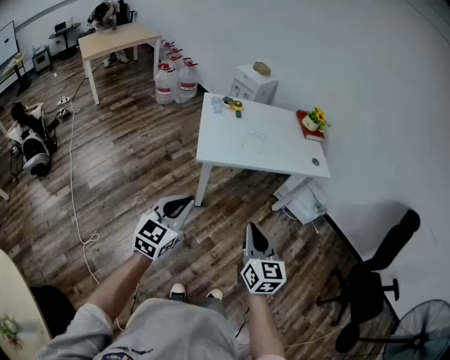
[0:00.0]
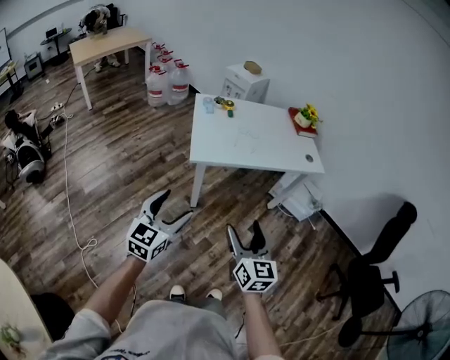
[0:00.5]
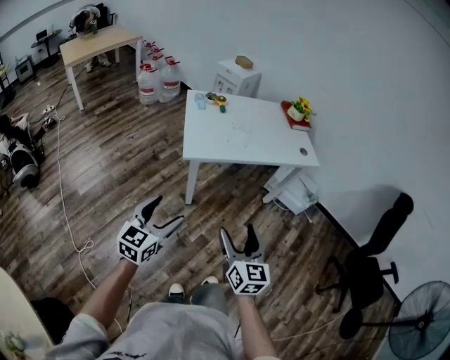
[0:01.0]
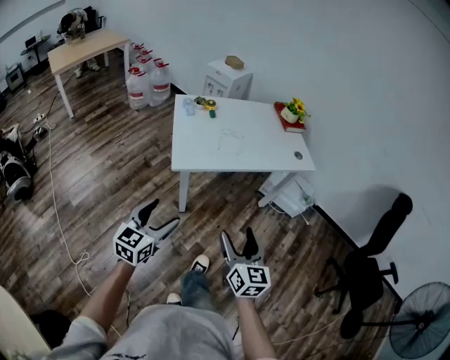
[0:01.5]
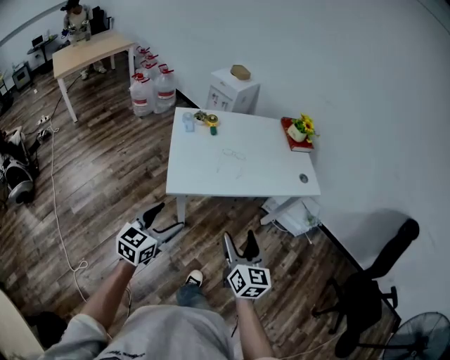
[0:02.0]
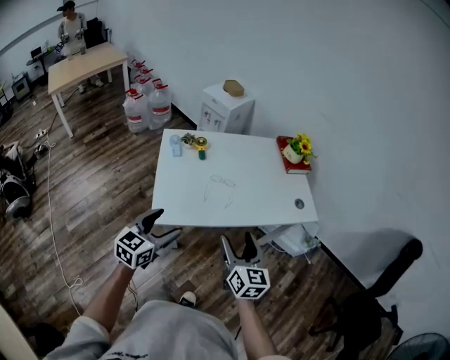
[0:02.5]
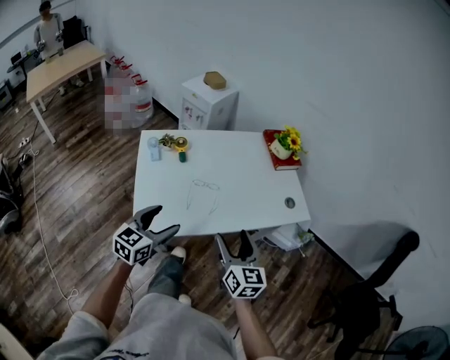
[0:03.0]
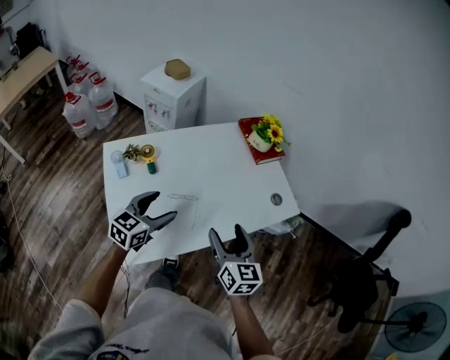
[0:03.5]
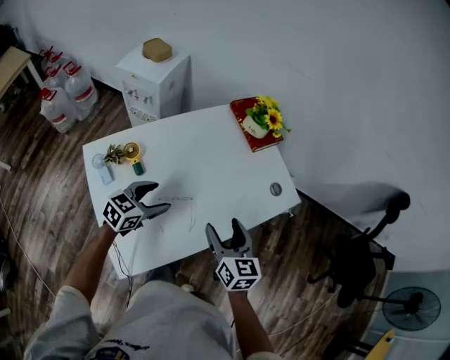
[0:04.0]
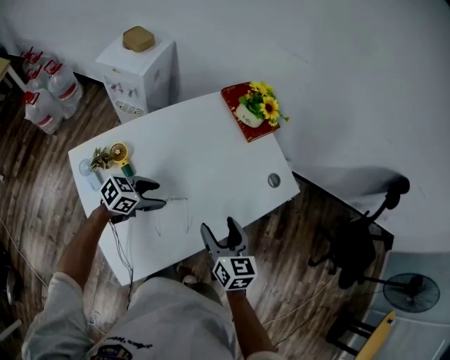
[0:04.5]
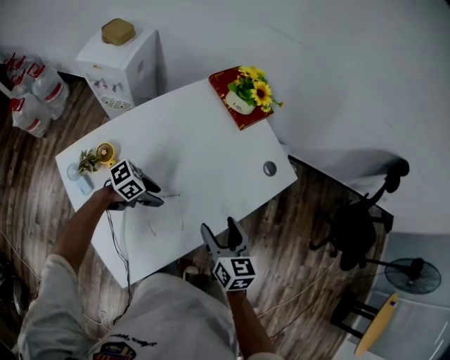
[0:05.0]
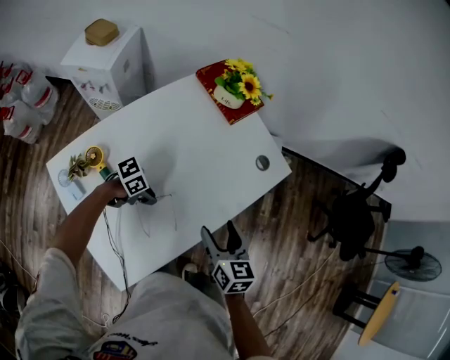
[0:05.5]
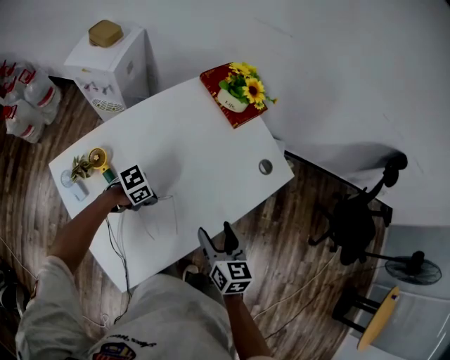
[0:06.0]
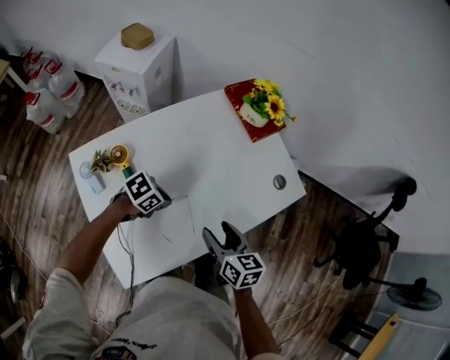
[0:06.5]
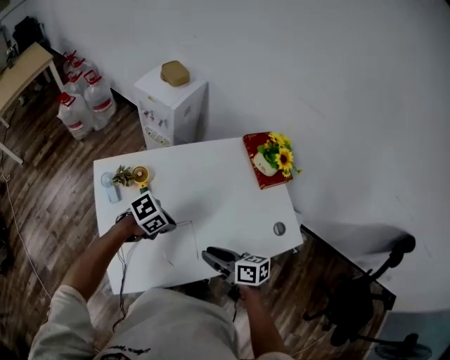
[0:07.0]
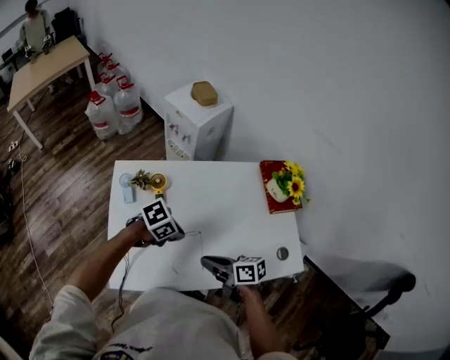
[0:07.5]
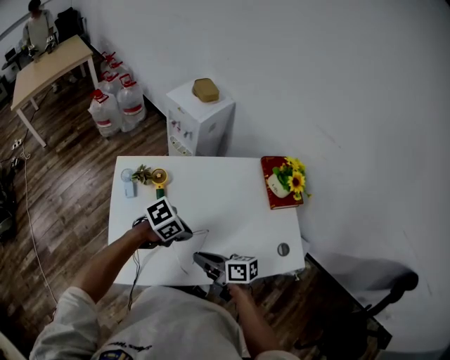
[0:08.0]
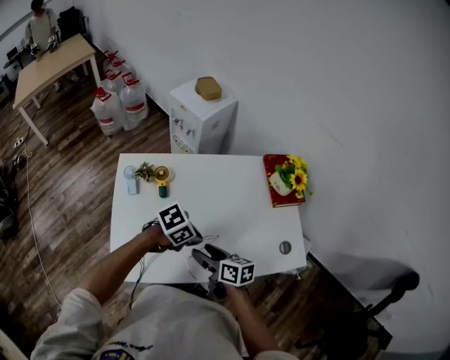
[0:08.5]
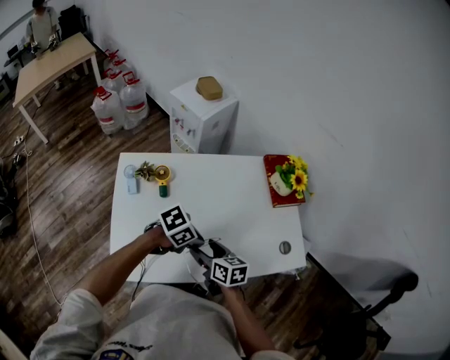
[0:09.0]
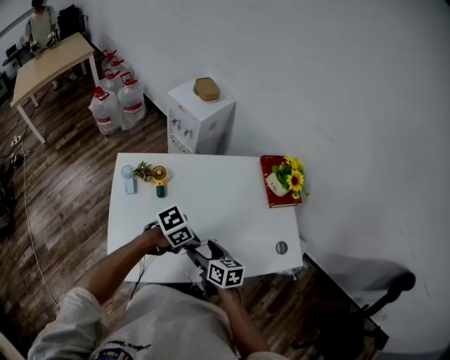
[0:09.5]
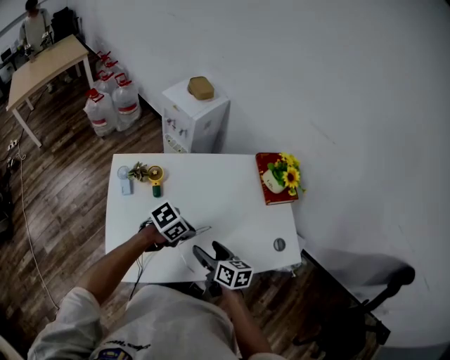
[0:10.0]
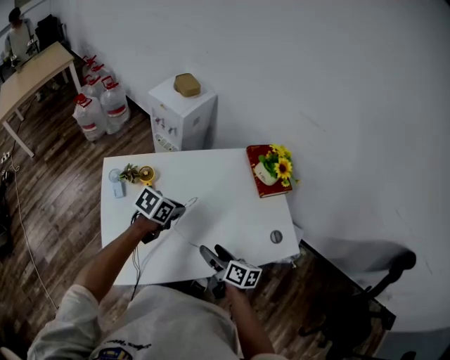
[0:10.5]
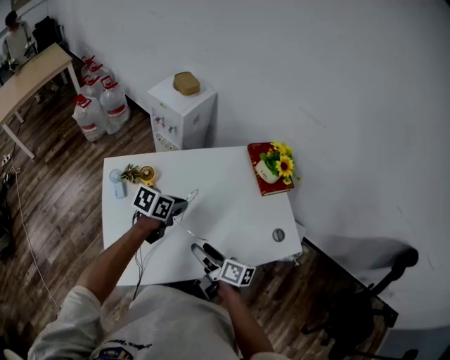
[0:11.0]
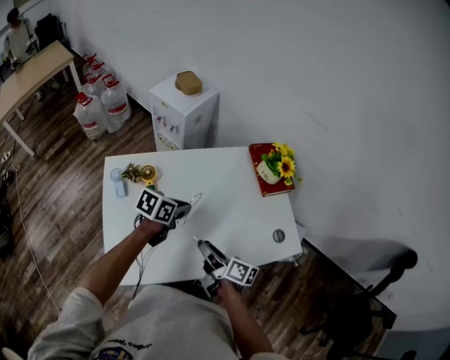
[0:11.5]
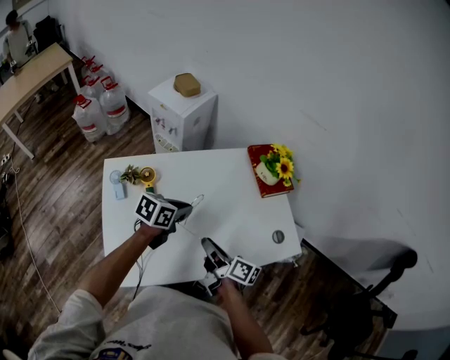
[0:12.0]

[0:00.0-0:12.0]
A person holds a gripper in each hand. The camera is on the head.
0:00.0 to 0:02.0: The grippers both shift forward by roughly 20 cm. The right gripper opens up, while the left gripper opens.
0:02.0 to 0:04.0: Both grippers are carried some 50 cm. The left gripper changes its angle by some 40 degrees.
0:04.0 to 0:06.0: The right gripper is displaced downward by roughly 5 cm. Meanwhile the left gripper shifts approximately 15 cm downward, turns by about 60 degrees, and closes its fingers.
0:06.0 to 0:08.0: The right gripper moves about 10 cm, changes its angle by roughly 70 degrees, and closes up, while the left gripper travels upward by about 20 cm, and turns by roughly 30 degrees.
0:08.0 to 0:10.0: The right gripper changes place by some 5 cm, turns by about 30 degrees, and opens its fingers.
0:10.0 to 0:12.0: The left gripper ends up about 10 cm from where it was, and swivels some 30 degrees. Meanwhile the right gripper travels upward by about 5 cm, changes its angle by approximately 30 degrees, and closes its fingers.

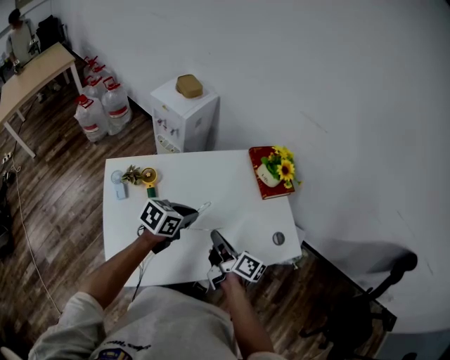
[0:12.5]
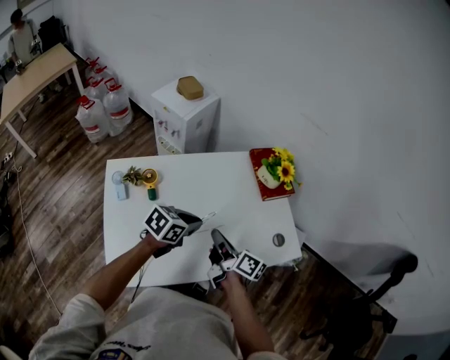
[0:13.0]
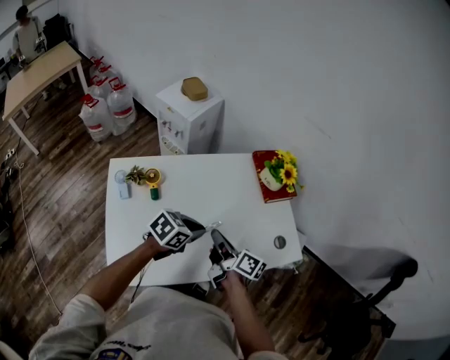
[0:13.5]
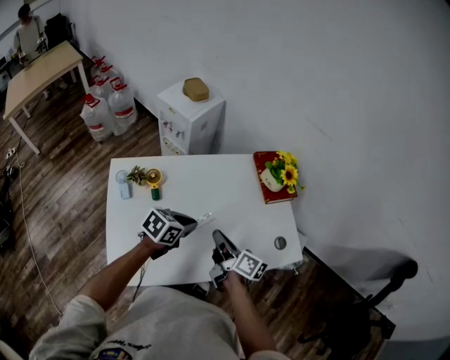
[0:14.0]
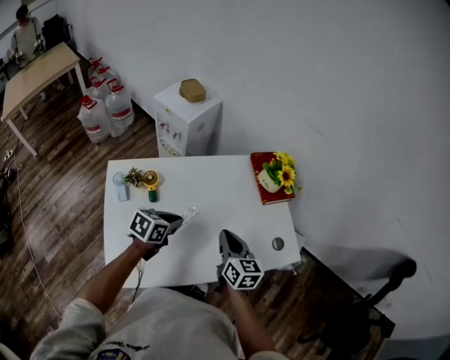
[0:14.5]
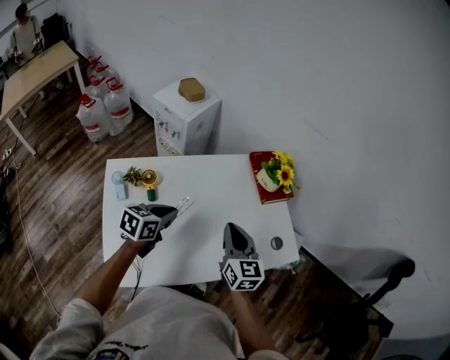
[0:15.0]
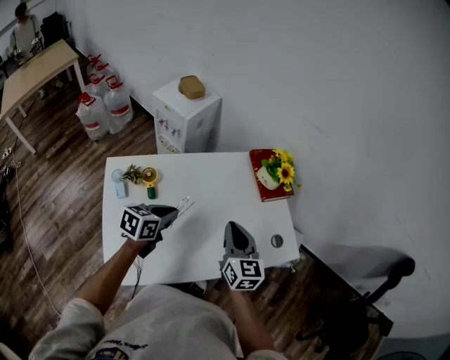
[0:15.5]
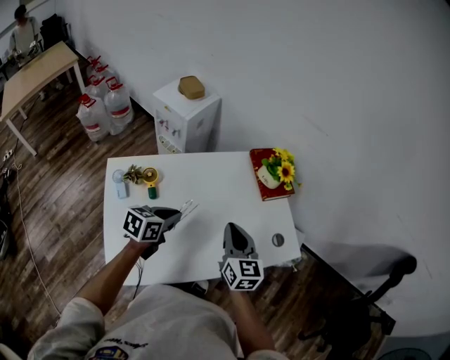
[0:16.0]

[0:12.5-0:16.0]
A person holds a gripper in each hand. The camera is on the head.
0:12.5 to 0:14.5: The right gripper turns by roughly 50 degrees. The left gripper changes place by roughly 5 cm.
0:14.5 to 0:16.0: There are only small adjustments of the grippers.

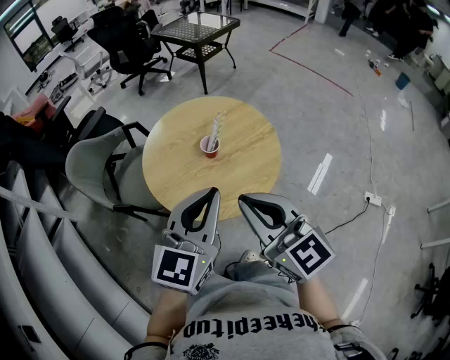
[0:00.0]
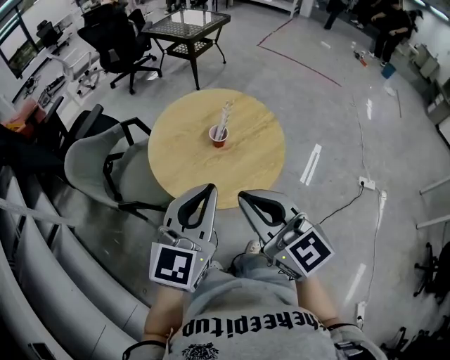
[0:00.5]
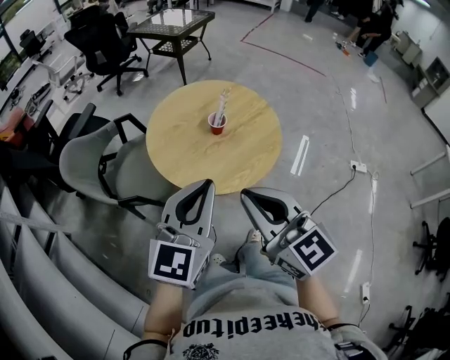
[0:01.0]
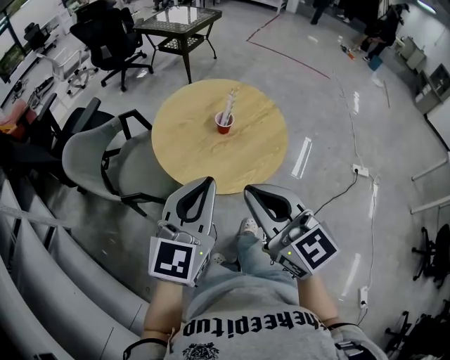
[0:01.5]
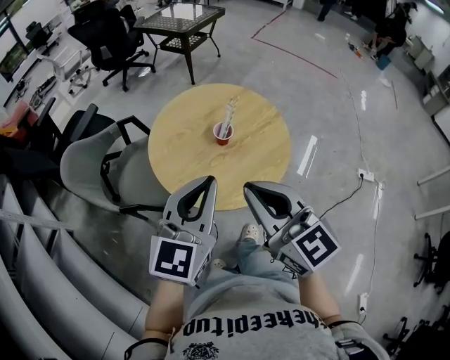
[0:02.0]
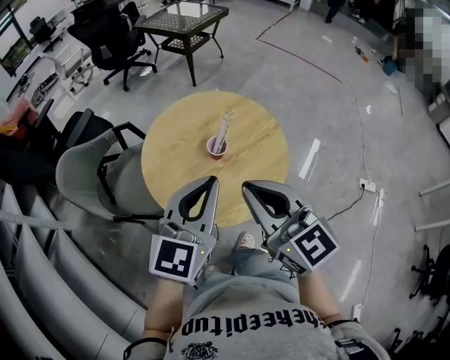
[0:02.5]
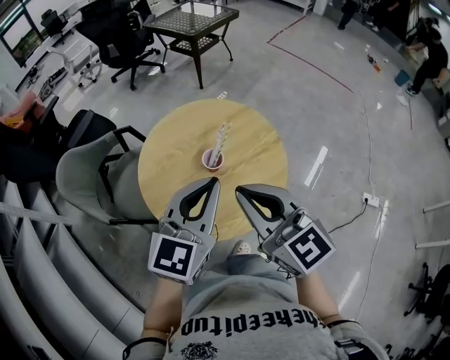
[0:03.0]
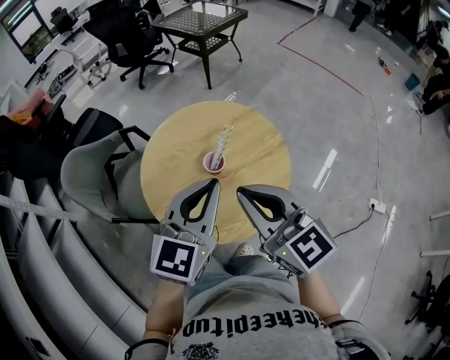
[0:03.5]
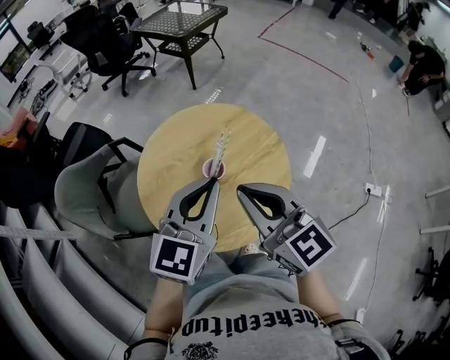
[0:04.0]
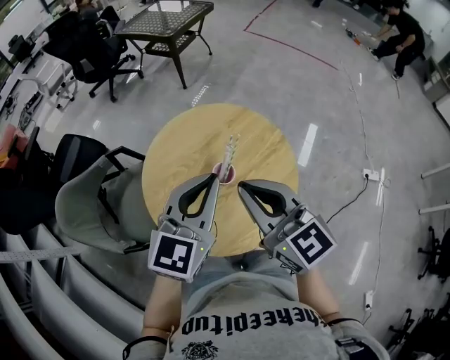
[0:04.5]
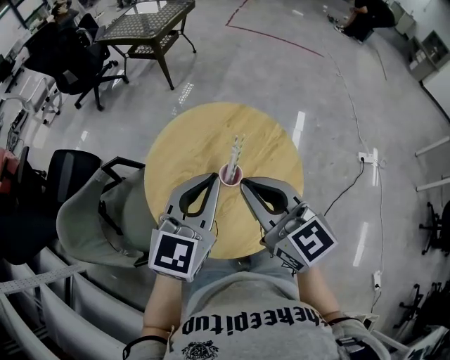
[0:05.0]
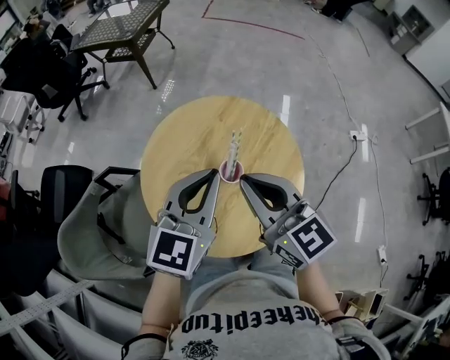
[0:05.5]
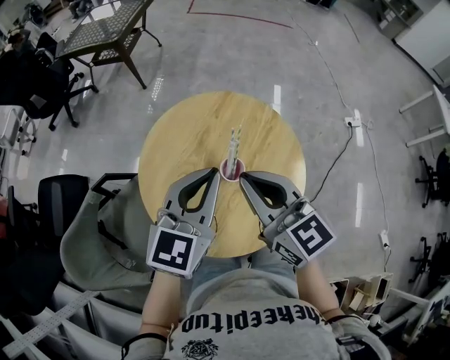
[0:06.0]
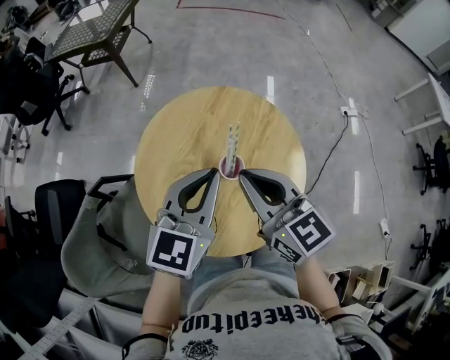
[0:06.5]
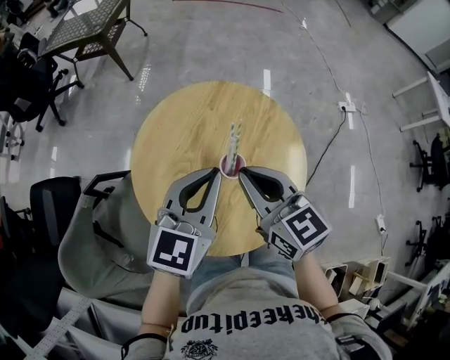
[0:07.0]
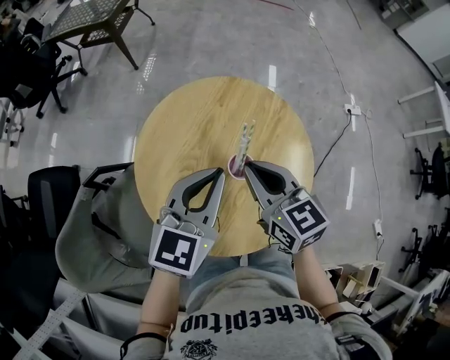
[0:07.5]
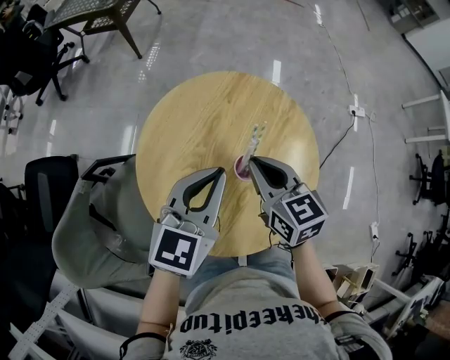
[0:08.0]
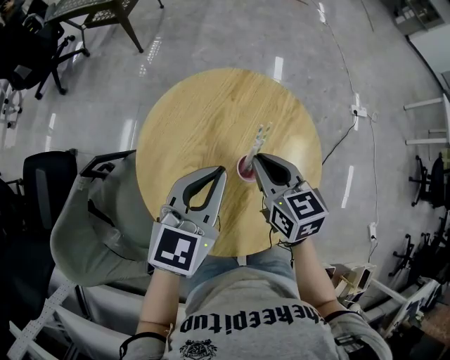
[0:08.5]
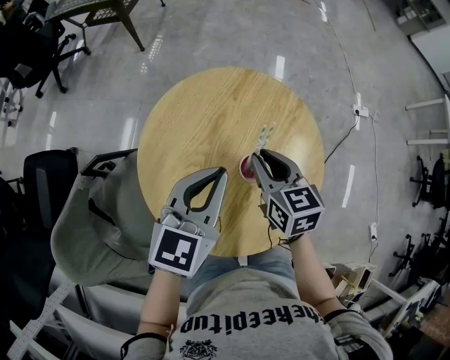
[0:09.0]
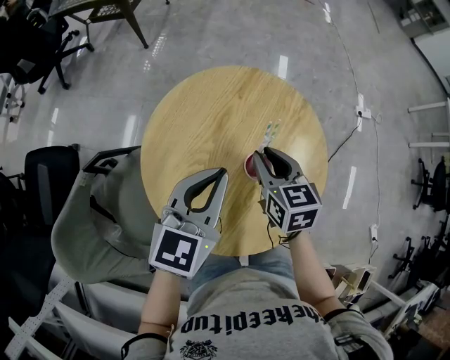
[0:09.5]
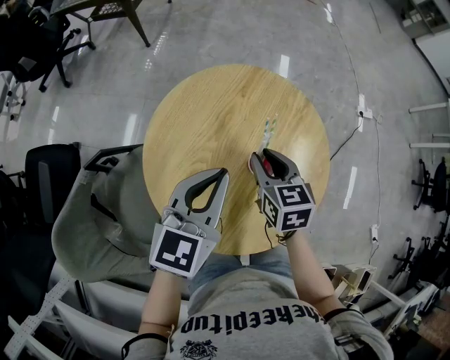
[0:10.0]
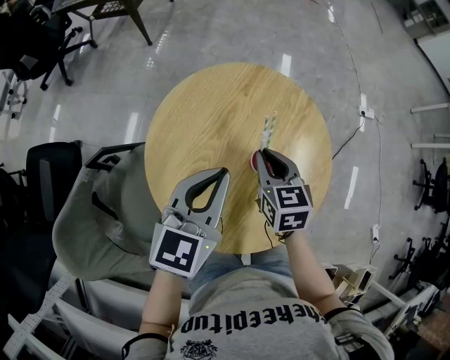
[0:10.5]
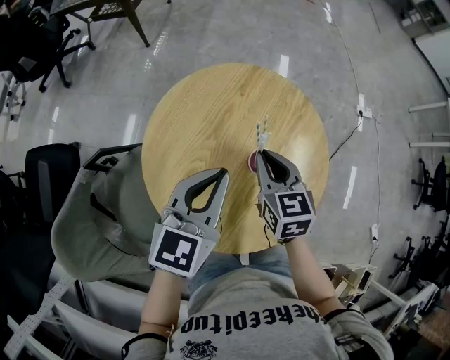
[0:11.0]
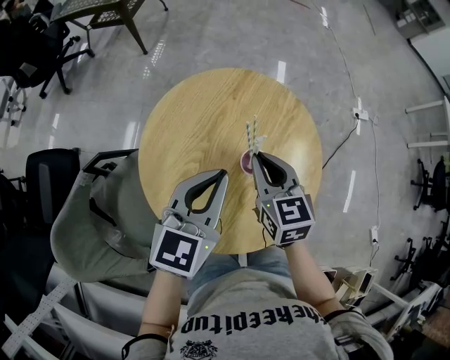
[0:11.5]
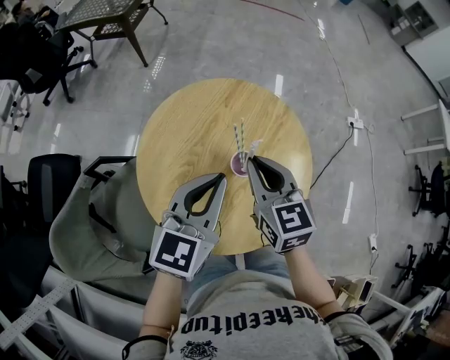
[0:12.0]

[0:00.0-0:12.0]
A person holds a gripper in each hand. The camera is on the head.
0:00.0 to 0:02.0: Both grippers travel together to the left, roughly 10 cm.
0:02.0 to 0:04.0: The left gripper is displaced forward and to the right by some 15 cm. Meanwhile the right gripper goes some 15 cm forward.
0:04.0 to 0:06.0: The right gripper changes place by some 10 cm, and changes its angle by approximately 30 degrees, while the left gripper changes place by approximately 10 cm, and rotates approximately 30 degrees.
0:06.0 to 0:08.0: The left gripper goes approximately 5 cm downward; the right gripper is displaced downward and forward by roughly 15 cm, and rotates about 20 degrees.
0:08.0 to 0:10.0: The right gripper heads downward, covering approximately 5 cm, and opens up.
0:10.0 to 0:12.0: The right gripper travels upward by roughly 10 cm, and closes its fingers. Meanwhile the left gripper changes place by some 5 cm.
